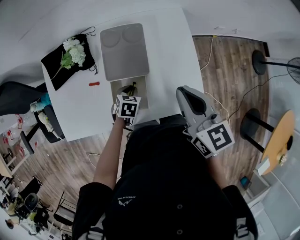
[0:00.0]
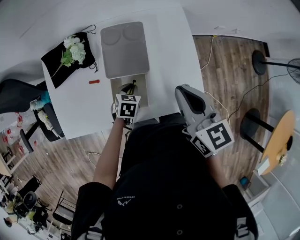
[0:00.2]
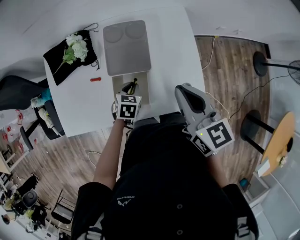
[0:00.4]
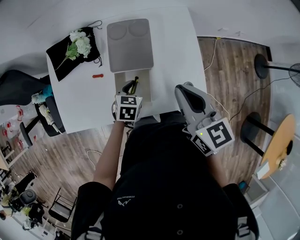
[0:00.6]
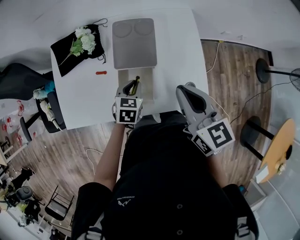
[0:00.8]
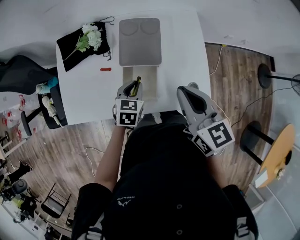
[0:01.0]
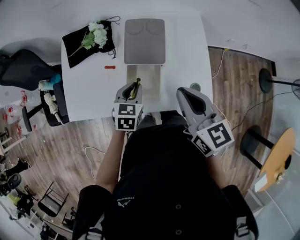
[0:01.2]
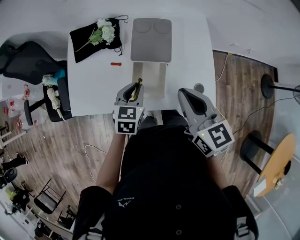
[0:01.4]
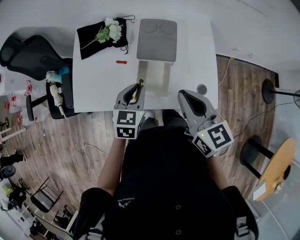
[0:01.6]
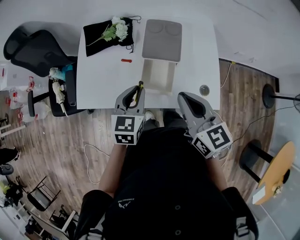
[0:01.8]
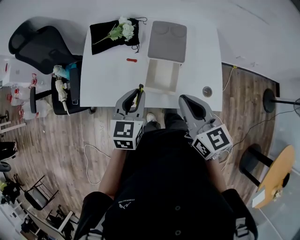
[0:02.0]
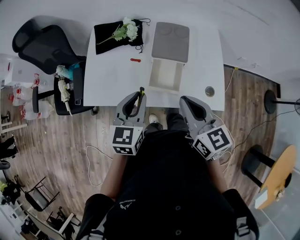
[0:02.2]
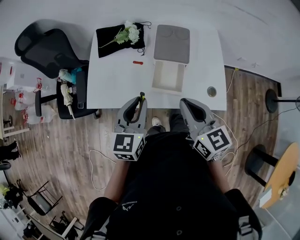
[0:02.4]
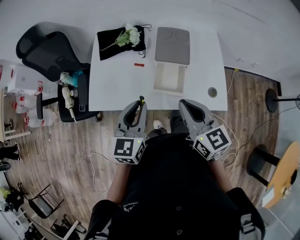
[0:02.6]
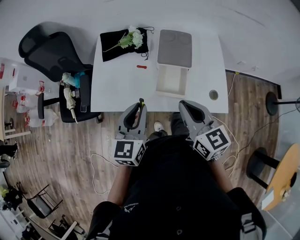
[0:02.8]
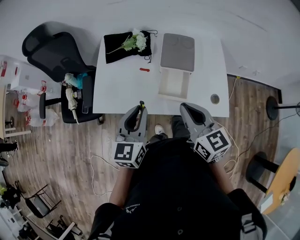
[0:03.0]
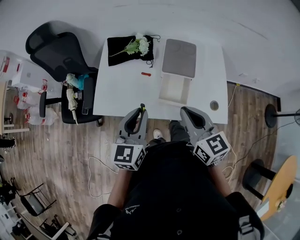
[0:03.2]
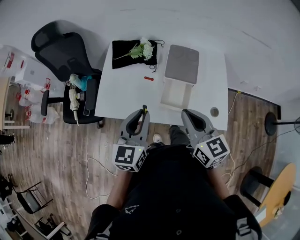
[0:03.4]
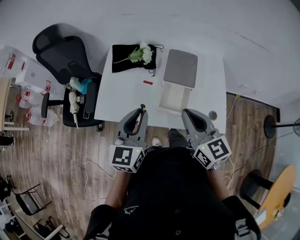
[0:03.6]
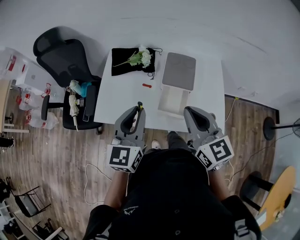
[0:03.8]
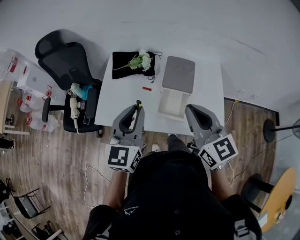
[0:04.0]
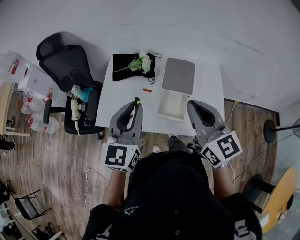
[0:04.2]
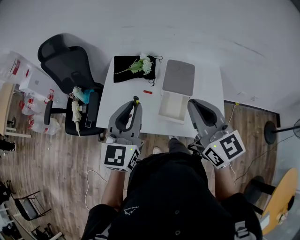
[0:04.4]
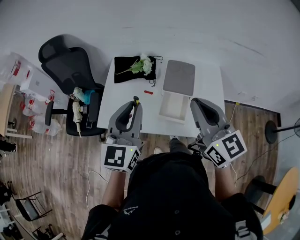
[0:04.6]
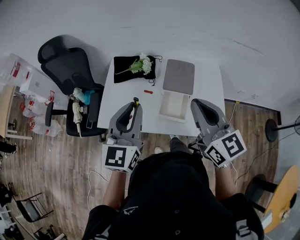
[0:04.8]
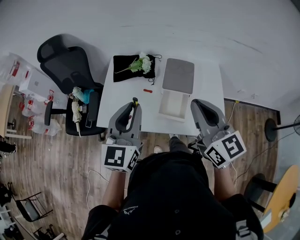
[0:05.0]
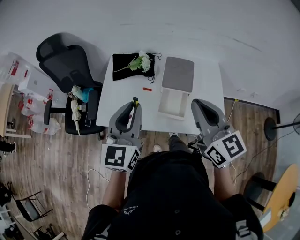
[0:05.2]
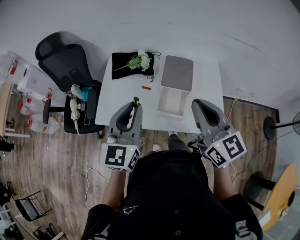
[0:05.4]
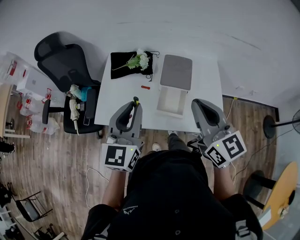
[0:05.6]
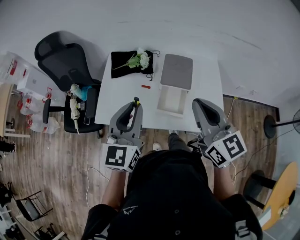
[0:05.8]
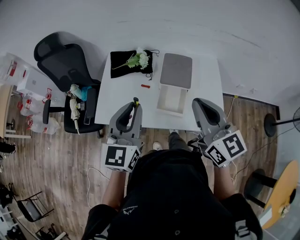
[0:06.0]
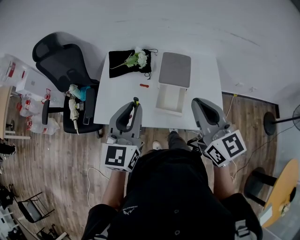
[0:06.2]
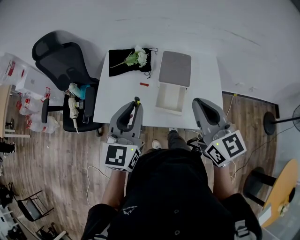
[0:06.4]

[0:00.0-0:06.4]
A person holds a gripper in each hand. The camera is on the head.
0.0 to 1.6 s: The right gripper shifts about 15 cm backward and to the left. The left gripper moves upward and backward, some 20 cm, and changes its angle by roughly 30 degrees.
1.6 to 3.2 s: The right gripper heads to the left, covering some 10 cm; the left gripper is displaced to the left, upward and backward by approximately 20 cm, and rotates approximately 20 degrees.
3.2 to 4.8 s: Both grippers travel together upward, about 10 cm.
4.8 to 6.4 s: The grippers stay close to where they were, moving slightly.

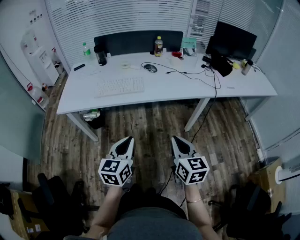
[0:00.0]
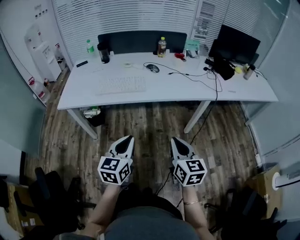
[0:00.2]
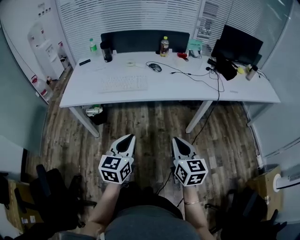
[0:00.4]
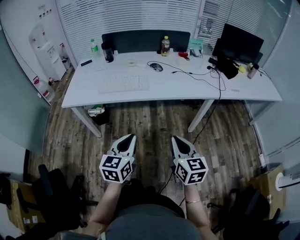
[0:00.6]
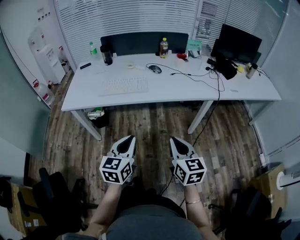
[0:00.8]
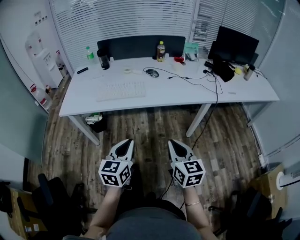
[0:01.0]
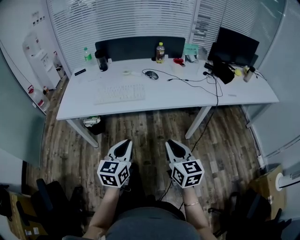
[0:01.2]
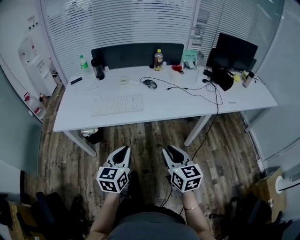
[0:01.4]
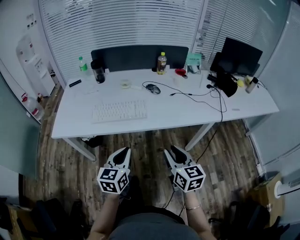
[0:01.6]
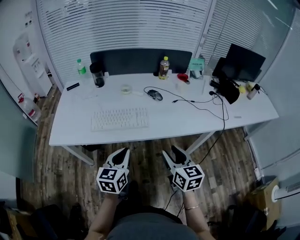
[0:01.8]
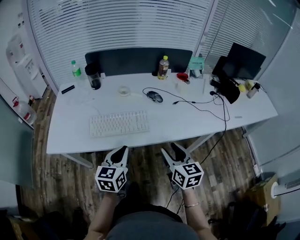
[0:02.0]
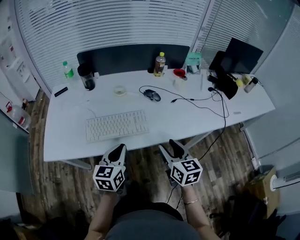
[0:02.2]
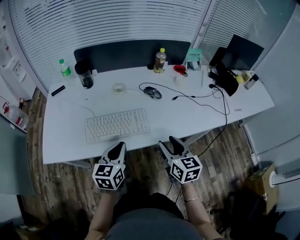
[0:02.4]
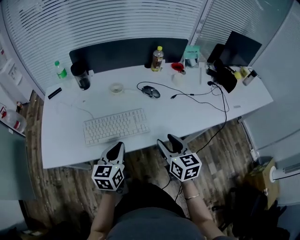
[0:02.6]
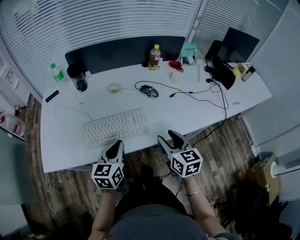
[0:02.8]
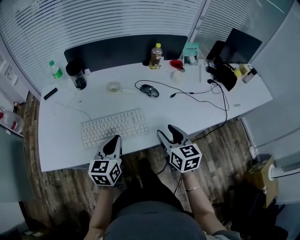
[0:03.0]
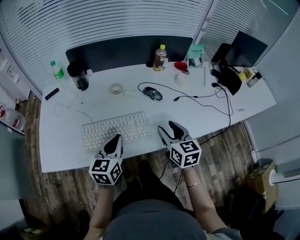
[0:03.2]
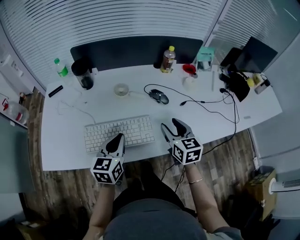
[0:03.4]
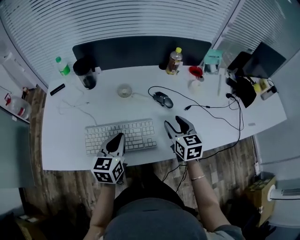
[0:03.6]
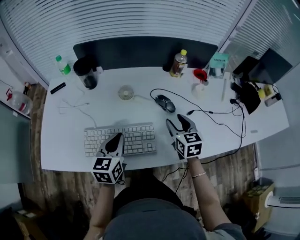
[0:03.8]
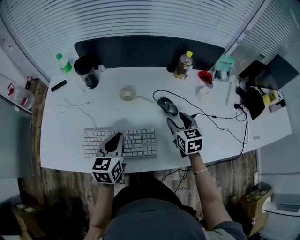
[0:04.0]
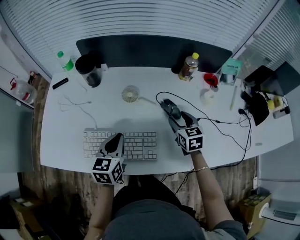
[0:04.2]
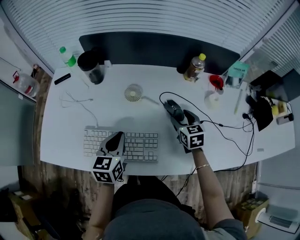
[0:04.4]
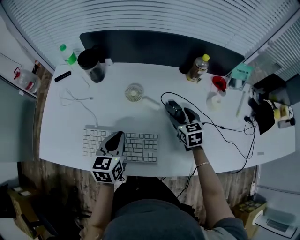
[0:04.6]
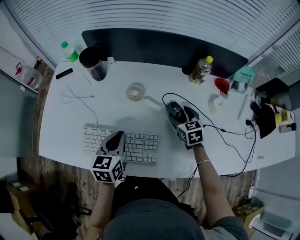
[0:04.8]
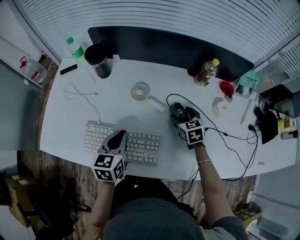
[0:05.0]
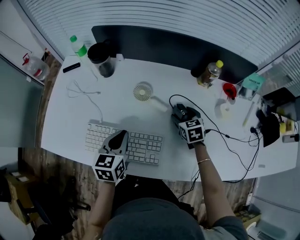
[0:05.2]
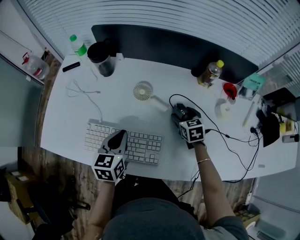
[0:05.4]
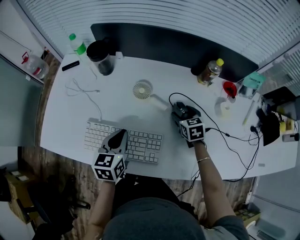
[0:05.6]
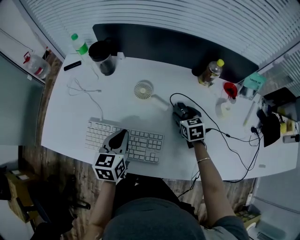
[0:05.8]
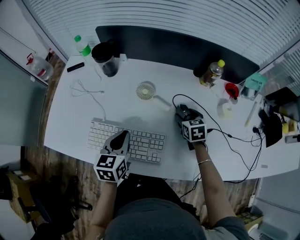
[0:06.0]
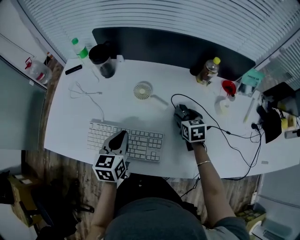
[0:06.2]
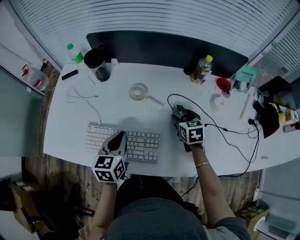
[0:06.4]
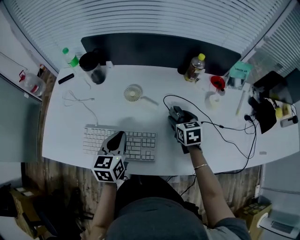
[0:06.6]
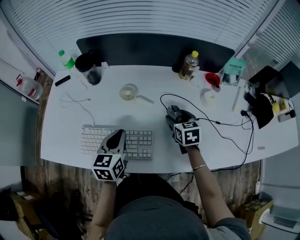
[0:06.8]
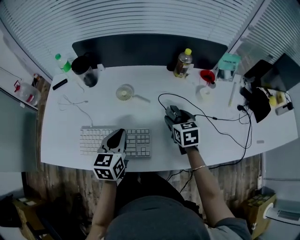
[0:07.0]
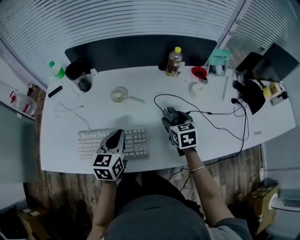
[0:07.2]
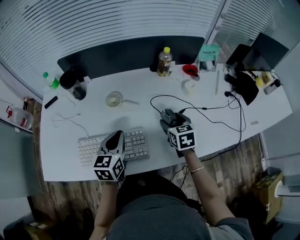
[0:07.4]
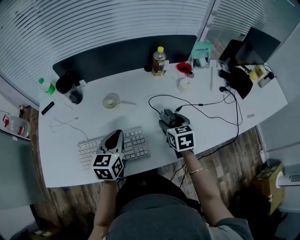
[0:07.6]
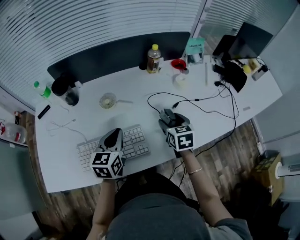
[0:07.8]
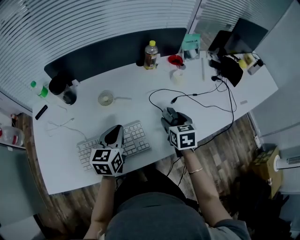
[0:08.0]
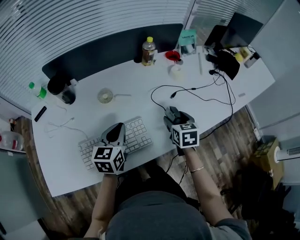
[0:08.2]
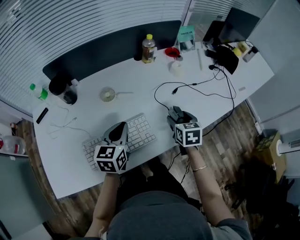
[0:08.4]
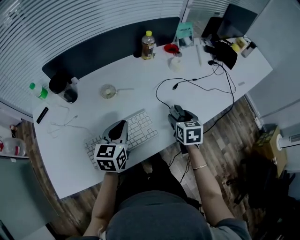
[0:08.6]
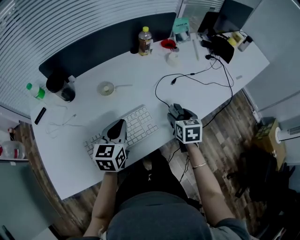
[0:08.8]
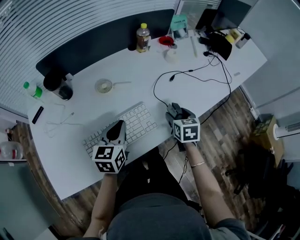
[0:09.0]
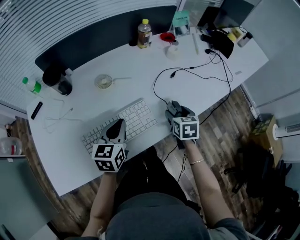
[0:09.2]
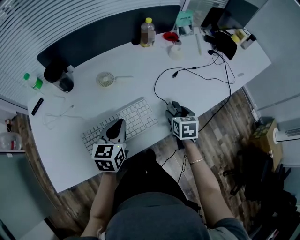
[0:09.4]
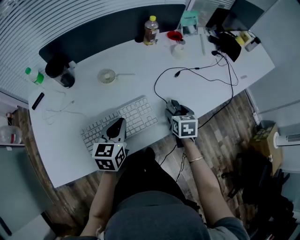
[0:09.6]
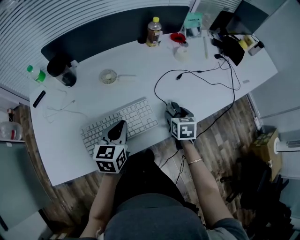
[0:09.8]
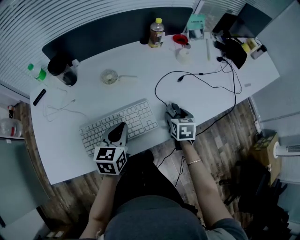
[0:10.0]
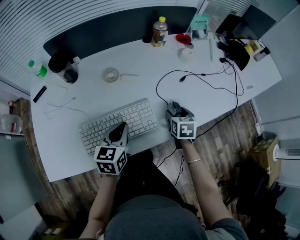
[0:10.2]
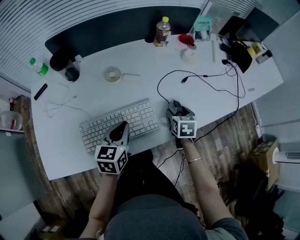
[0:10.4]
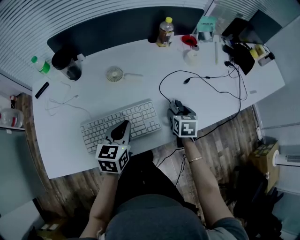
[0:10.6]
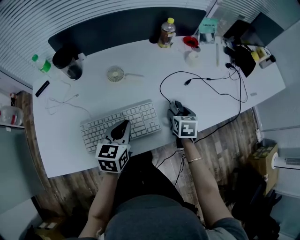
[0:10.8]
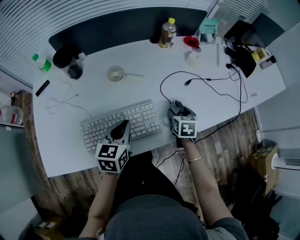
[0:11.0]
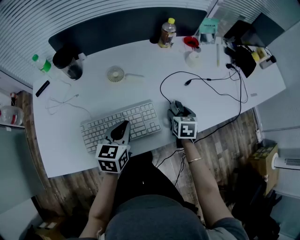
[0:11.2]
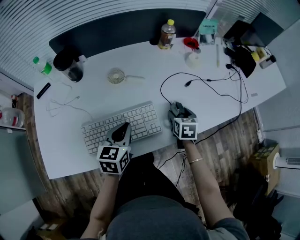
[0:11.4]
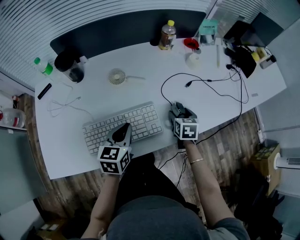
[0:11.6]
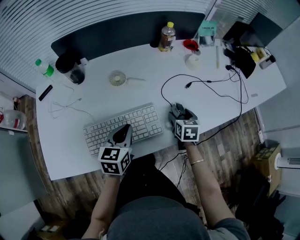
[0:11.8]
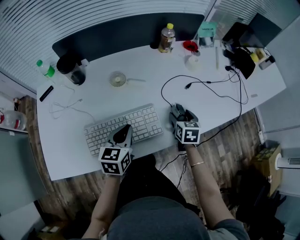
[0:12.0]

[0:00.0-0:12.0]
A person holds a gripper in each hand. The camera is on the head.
0.0 to 1.6 s: The two grippers go some 15 cm forward.
1.6 to 3.0 s: Both grippers move forward, some 20 cm.
3.0 to 4.4 s: The left gripper heads forward, covering about 15 cm. Meanwhile the right gripper is displaced forward by approximately 25 cm, and changes its angle by about 20 degrees.
4.4 to 6.0 s: The right gripper ends up about 5 cm from where it was.
6.0 to 7.6 s: The right gripper is displaced backward and upward by approximately 15 cm, and changes its angle by roughly 20 degrees. The left gripper moves to the right, about 5 cm, and changes its angle by approximately 20 degrees.
7.6 to 9.0 s: The left gripper moves about 5 cm; the right gripper heads backward, covering roughly 10 cm, and turns by roughly 20 degrees.
9.0 to 10.4 s: The right gripper shifts some 5 cm downward.
10.4 to 12.0 s: The grippers make only small movements.

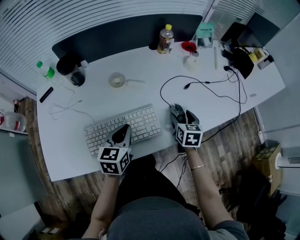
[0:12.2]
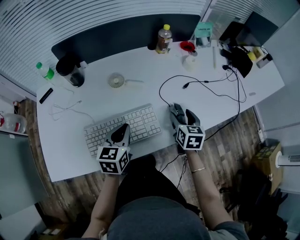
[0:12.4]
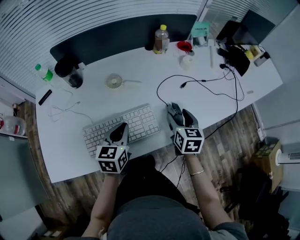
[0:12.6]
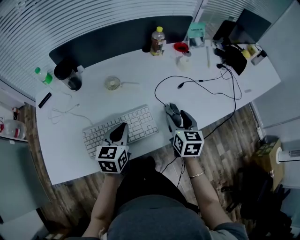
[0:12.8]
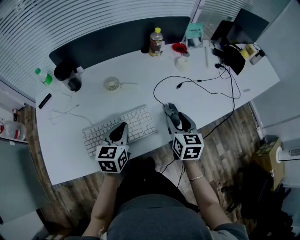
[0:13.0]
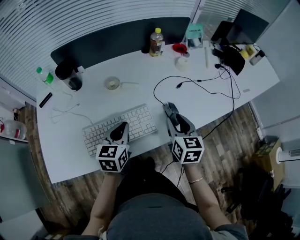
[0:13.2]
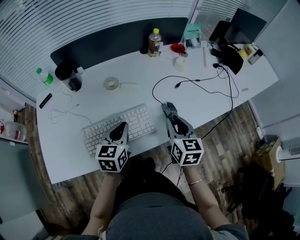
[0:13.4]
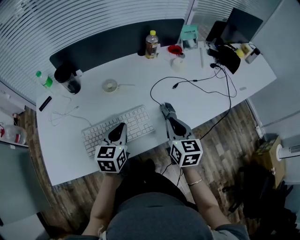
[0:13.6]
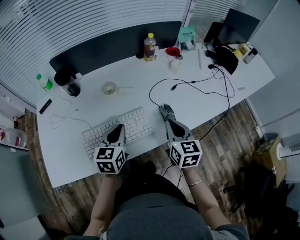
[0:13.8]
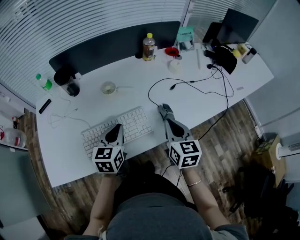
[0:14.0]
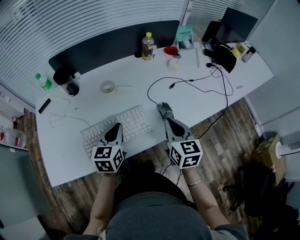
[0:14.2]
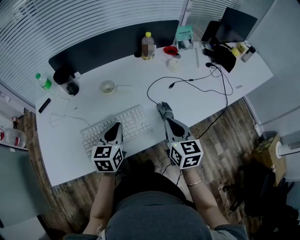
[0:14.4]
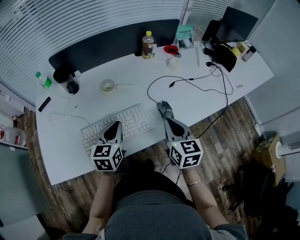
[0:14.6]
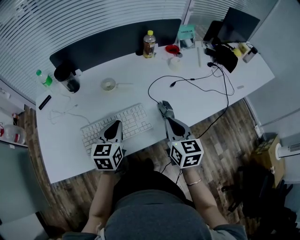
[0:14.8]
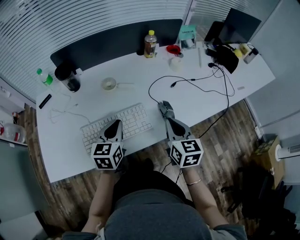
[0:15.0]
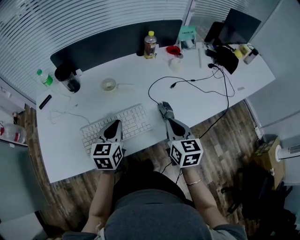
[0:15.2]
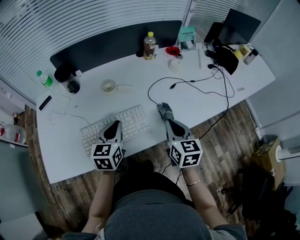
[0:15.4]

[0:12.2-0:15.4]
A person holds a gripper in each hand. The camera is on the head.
12.2 to 13.8 s: The right gripper goes about 15 cm upward and backward, and closes up.
13.8 to 15.4 s: The grippers make only small movements.

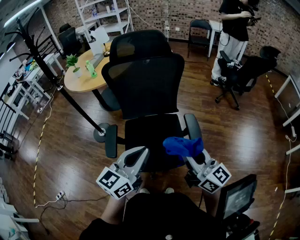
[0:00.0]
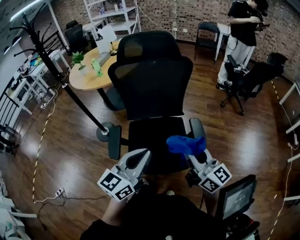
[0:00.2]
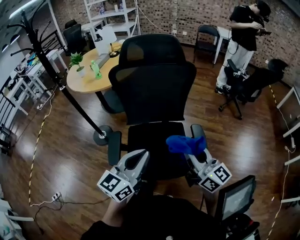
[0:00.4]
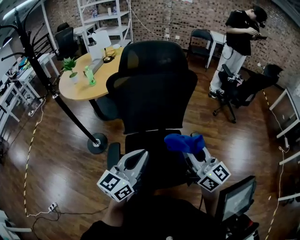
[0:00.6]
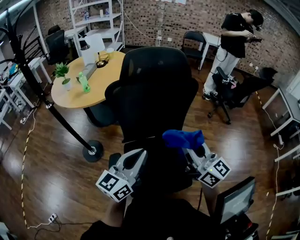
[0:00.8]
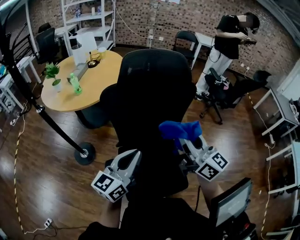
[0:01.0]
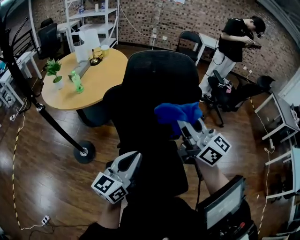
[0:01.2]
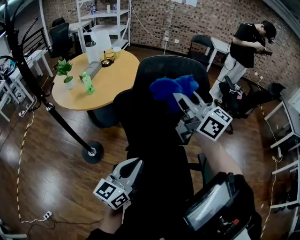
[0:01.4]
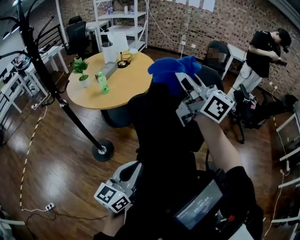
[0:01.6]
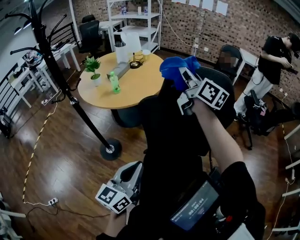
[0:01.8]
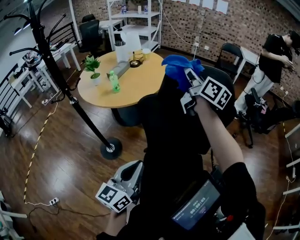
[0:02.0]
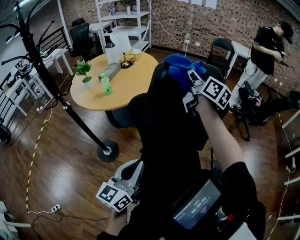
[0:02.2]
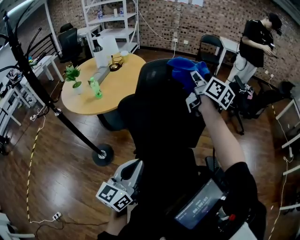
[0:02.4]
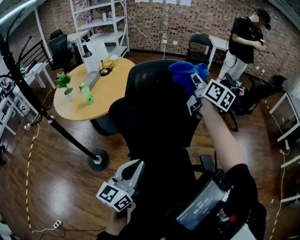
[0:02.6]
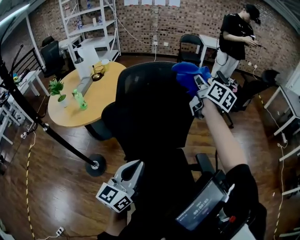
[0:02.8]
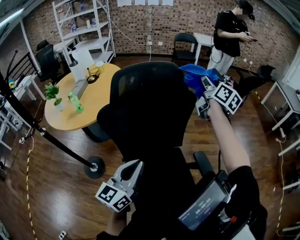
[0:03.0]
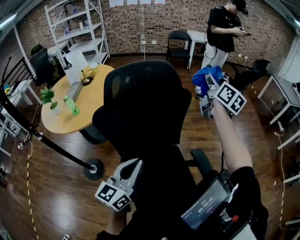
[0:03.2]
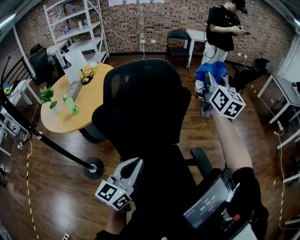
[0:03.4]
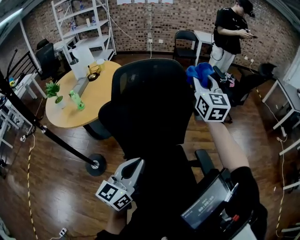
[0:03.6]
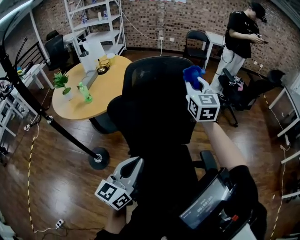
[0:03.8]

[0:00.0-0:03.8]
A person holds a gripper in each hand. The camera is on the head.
0.0 to 1.2 s: The grippers both shift forward and to the left by some 30 cm.
1.2 to 2.6 s: The right gripper shifts about 25 cm forward and to the right, and rotates roughly 30 degrees; the left gripper reaches some 10 cm to the left, then returns.
2.6 to 3.8 s: The right gripper reaches roughly 15 cm to the right, then returns, and rolls counterclockwise, seen from behind, by some 40 degrees.
